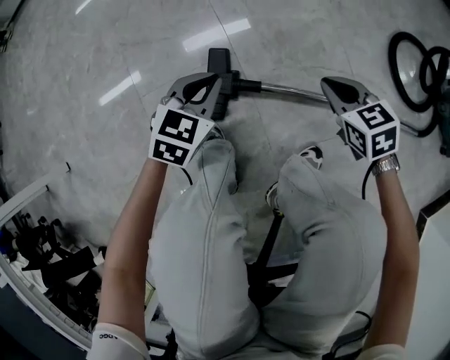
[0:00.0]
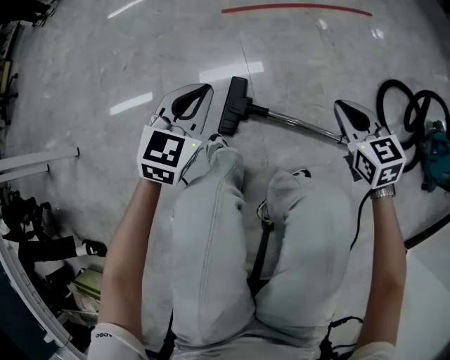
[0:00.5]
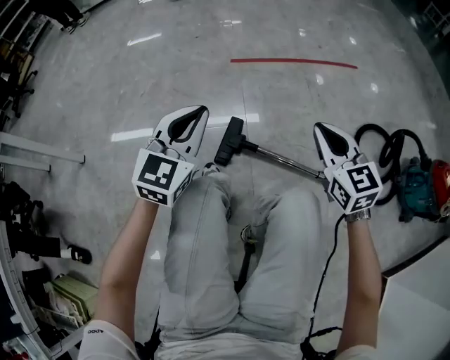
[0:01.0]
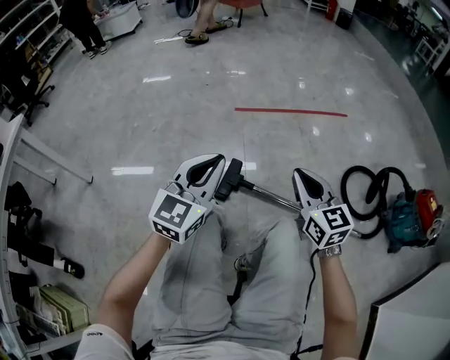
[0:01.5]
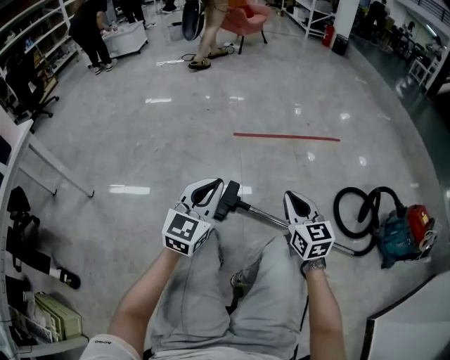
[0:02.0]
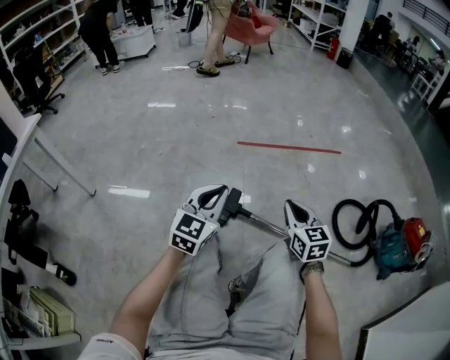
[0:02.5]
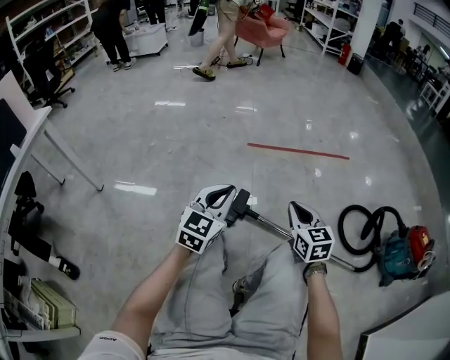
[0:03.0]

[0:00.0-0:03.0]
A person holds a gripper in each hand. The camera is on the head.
0:00.0 to 0:01.5: The right gripper moves upward, approximately 35 cm, and points its fingers about 40 degrees further upward, while the left gripper shifts roughly 40 cm upward and backward, and tilts its fingers some 30 degrees upward.
0:01.5 to 0:03.0: The grippers stay close to where they were, moving slightly.

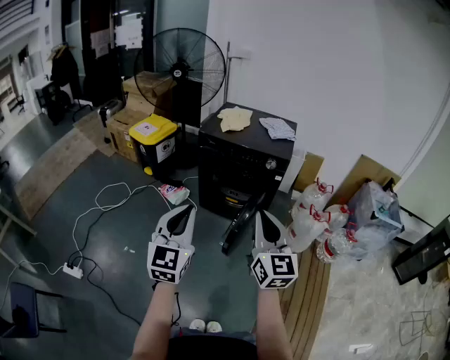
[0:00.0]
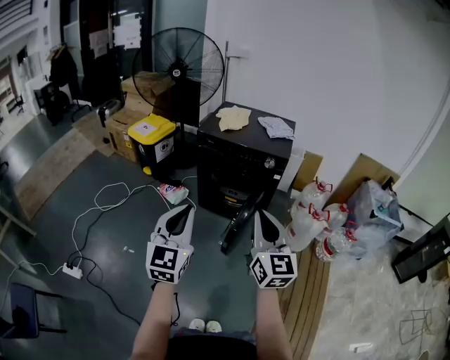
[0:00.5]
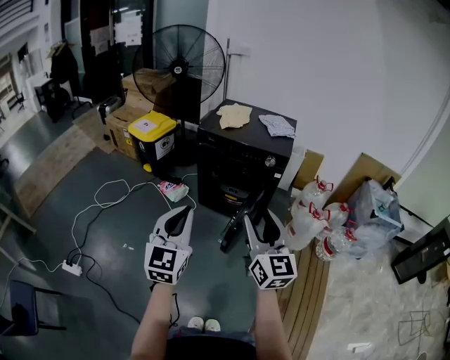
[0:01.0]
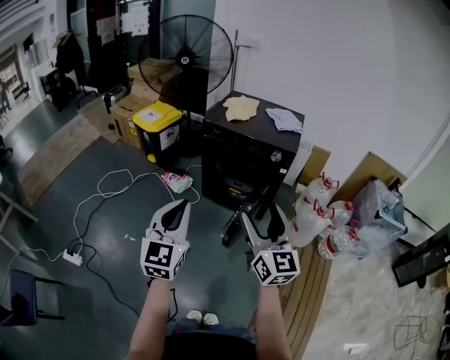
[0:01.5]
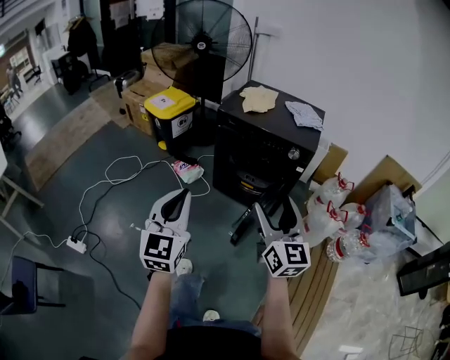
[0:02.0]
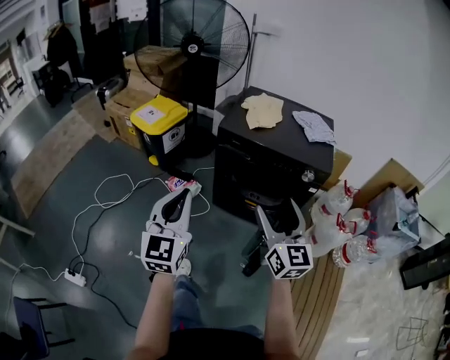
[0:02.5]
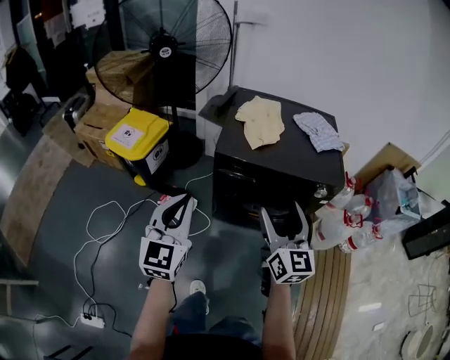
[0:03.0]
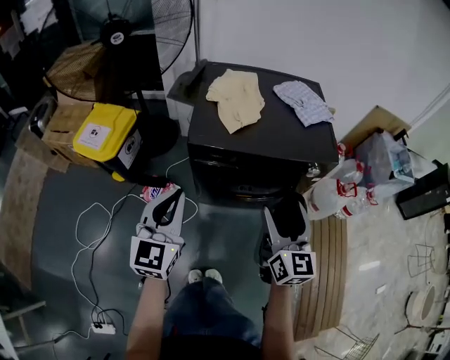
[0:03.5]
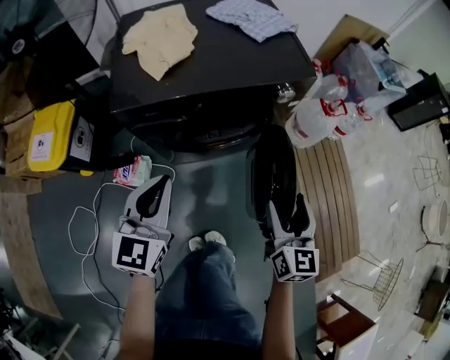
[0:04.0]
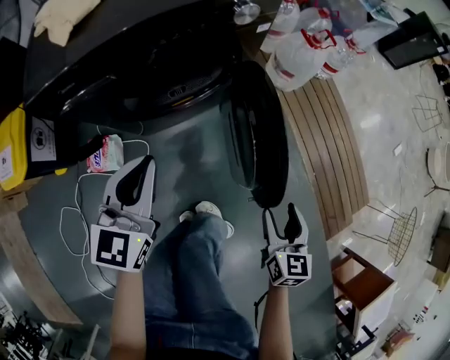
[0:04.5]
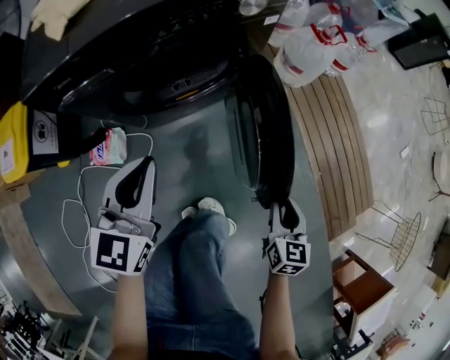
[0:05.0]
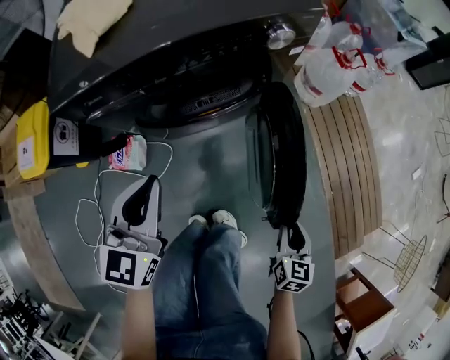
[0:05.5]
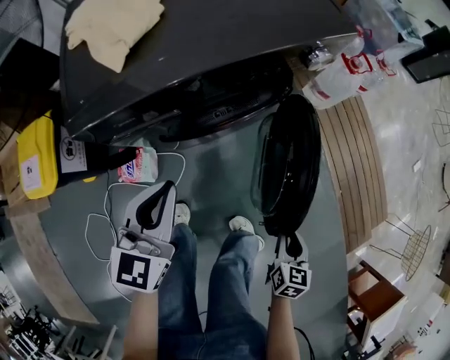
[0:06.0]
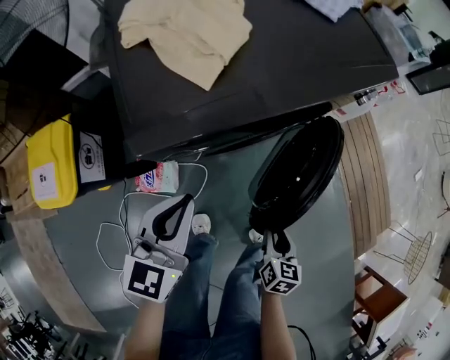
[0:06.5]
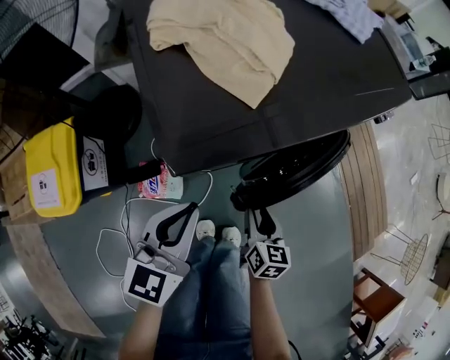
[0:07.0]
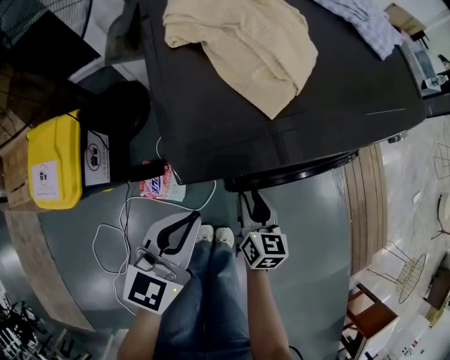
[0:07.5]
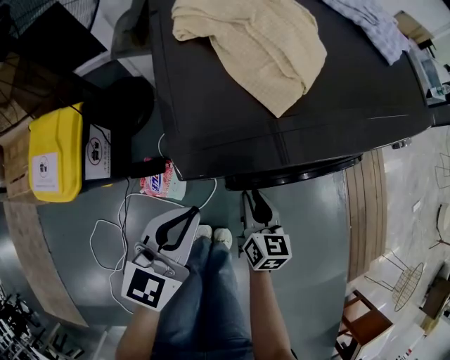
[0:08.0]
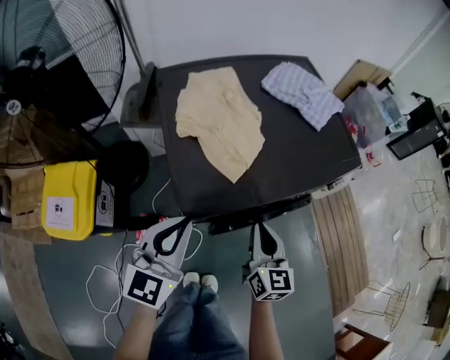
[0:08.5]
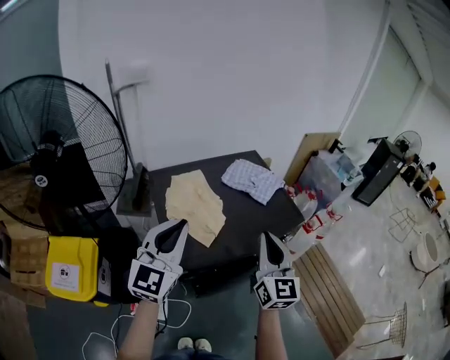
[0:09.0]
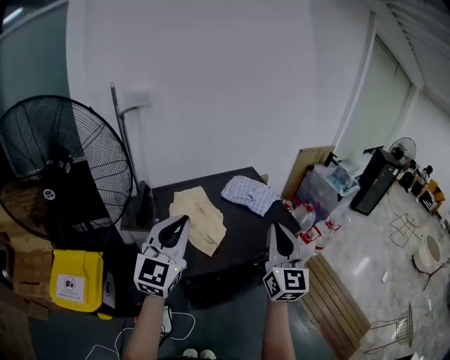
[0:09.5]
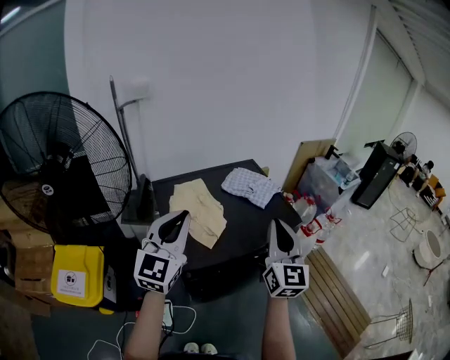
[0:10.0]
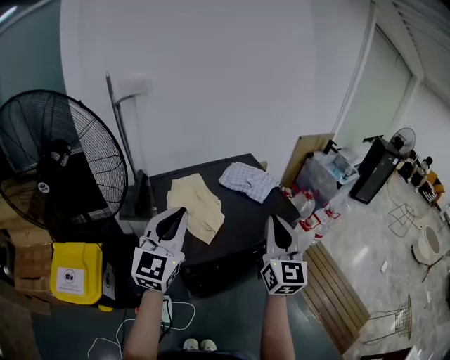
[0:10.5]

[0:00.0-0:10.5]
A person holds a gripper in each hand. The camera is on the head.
0:00.0 to 0:02.0: The left gripper shifts about 5 cm forward, while the right gripper travels forward by about 10 cm, and opens its fingers.
0:02.0 to 0:04.0: The right gripper moves downward, approximately 25 cm, and rotates some 50 degrees. The left gripper moves approximately 50 cm, and rotates some 50 degrees.
0:04.0 to 0:06.5: The left gripper travels to the left, downward and forward by some 15 cm, while the right gripper moves downward and to the left, approximately 30 cm, changes its angle by about 40 degrees, and closes up.
0:06.5 to 0:08.5: The right gripper travels upward, forward and to the left by approximately 30 cm, tips its fingers upward by some 30 degrees, and closes its fingers, while the left gripper is displaced upward, to the left and forward by approximately 15 cm.
0:08.5 to 0:10.5: Both grippers travel together upward, some 30 cm. The left gripper swivels roughly 20 degrees. Meanwhile the right gripper changes its angle by approximately 30 degrees.

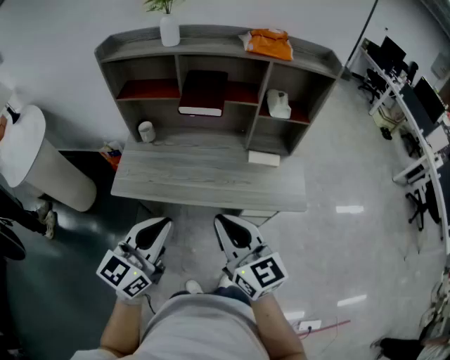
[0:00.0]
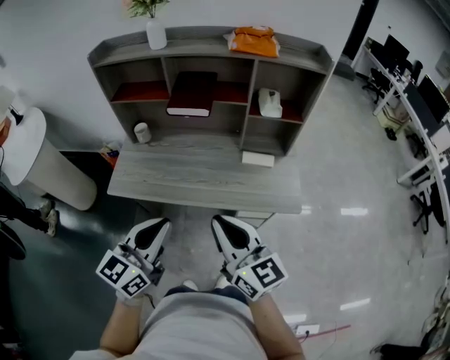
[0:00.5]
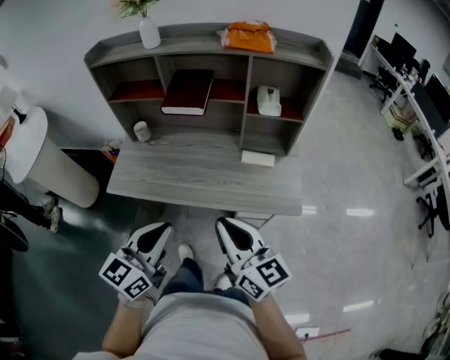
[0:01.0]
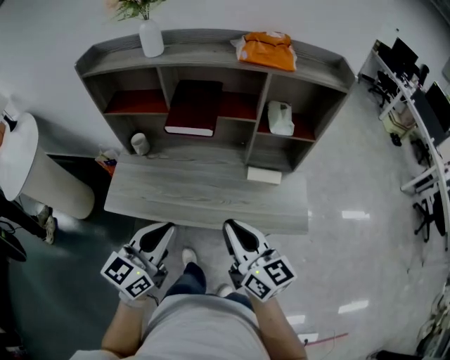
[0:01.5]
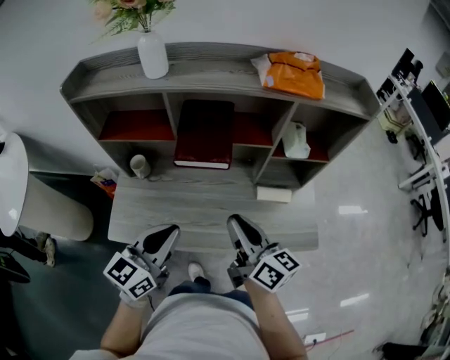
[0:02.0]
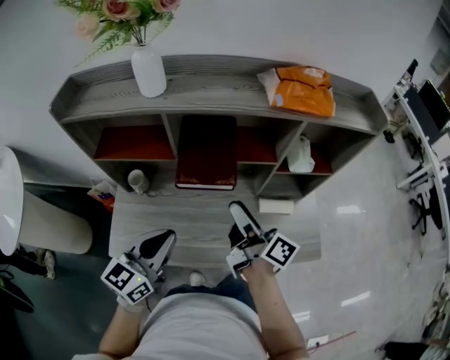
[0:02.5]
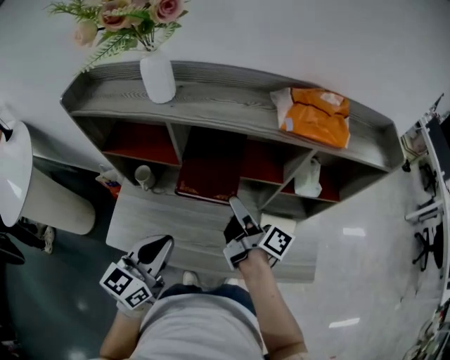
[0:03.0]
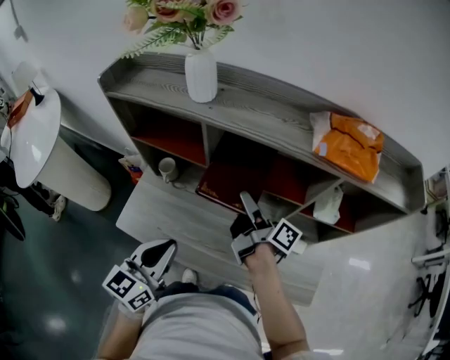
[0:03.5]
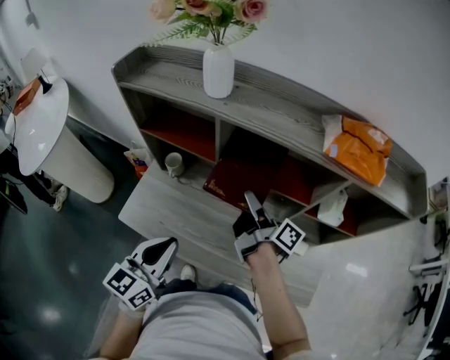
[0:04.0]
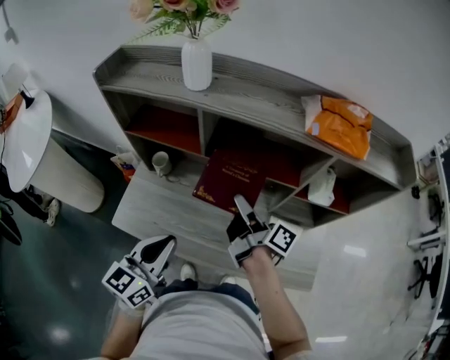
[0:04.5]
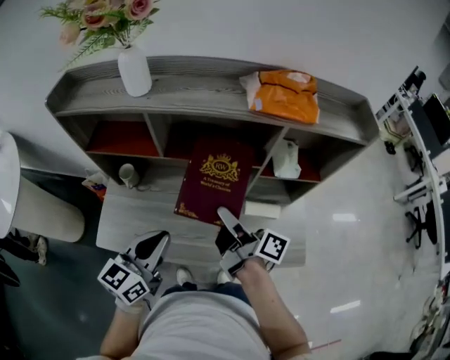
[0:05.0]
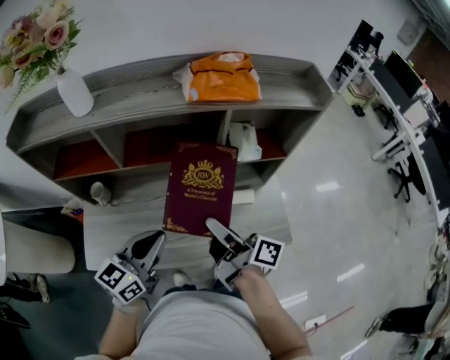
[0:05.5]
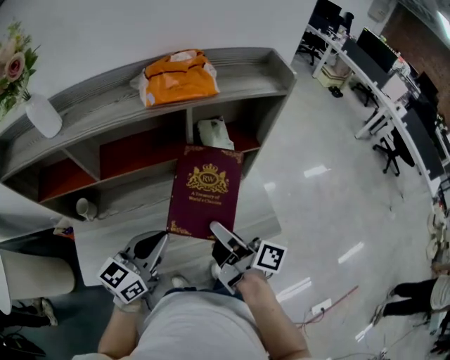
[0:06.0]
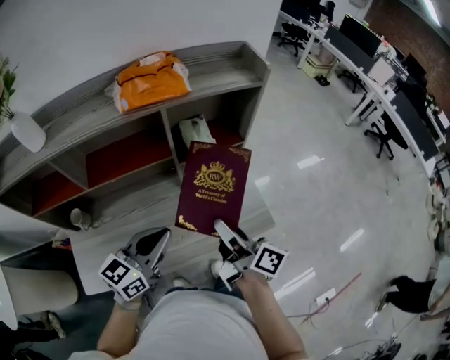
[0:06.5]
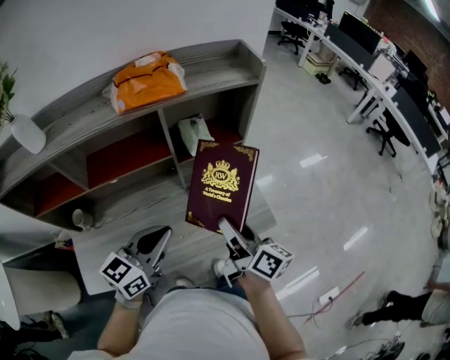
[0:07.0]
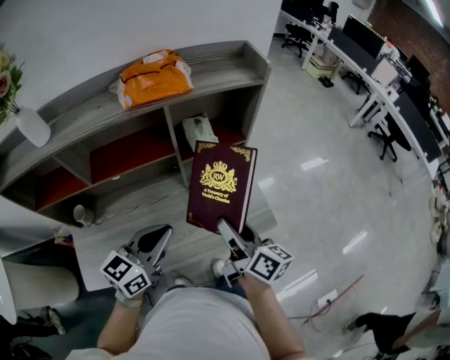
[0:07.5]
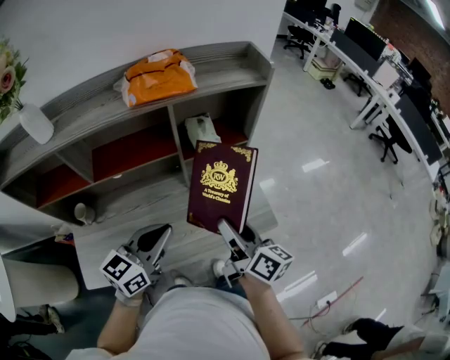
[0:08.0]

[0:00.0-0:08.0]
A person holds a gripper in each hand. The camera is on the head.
0:00.0 to 0:02.0: The grippers both shift forward by roughly 25 cm. The right gripper turns by roughly 30 degrees.
0:02.0 to 0:04.0: The right gripper moves forward, some 20 cm, rotates around the line of its fingers by about 40 degrees, clockwise from behind, and opens up; the left gripper turns by approximately 20 degrees.
0:04.0 to 0:06.0: The left gripper changes place by about 20 cm, and swivels about 40 degrees. The right gripper shifts by about 25 cm, and turns by about 30 degrees.
0:06.0 to 0:08.0: The right gripper shifts some 5 cm to the right, and changes its angle by about 30 degrees.

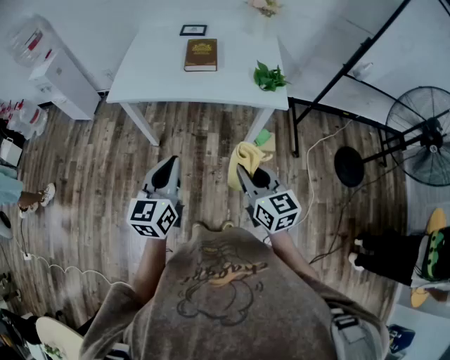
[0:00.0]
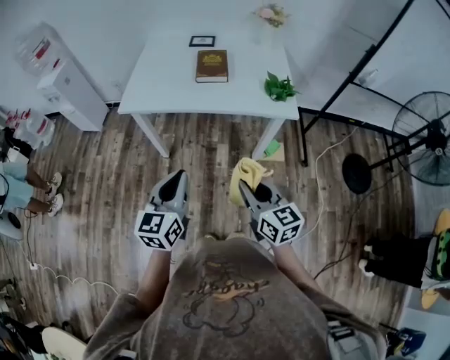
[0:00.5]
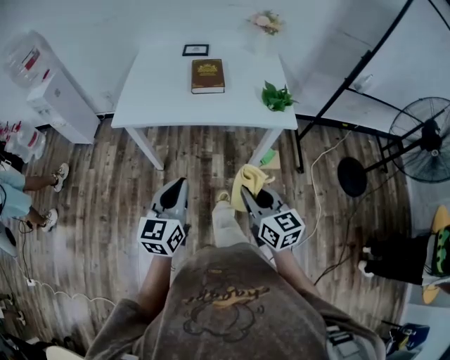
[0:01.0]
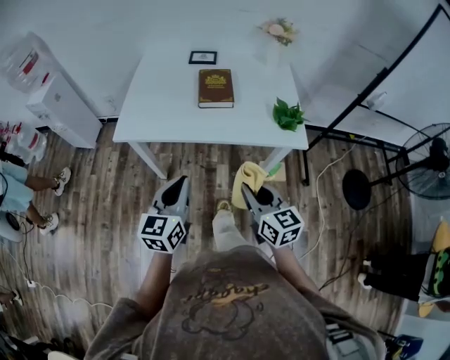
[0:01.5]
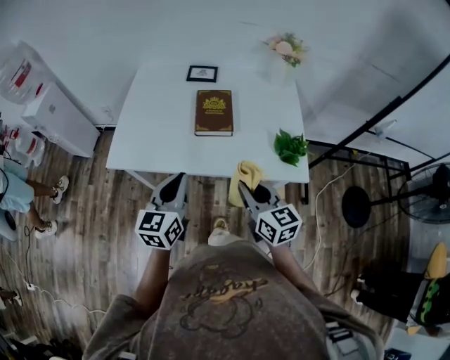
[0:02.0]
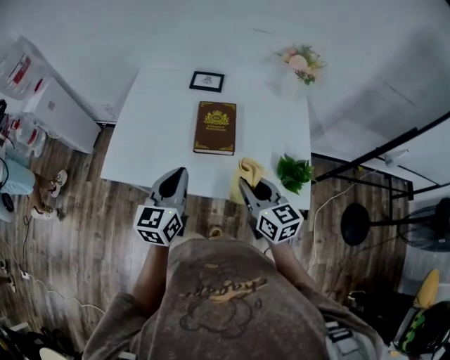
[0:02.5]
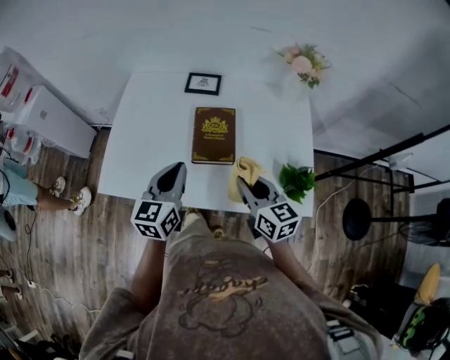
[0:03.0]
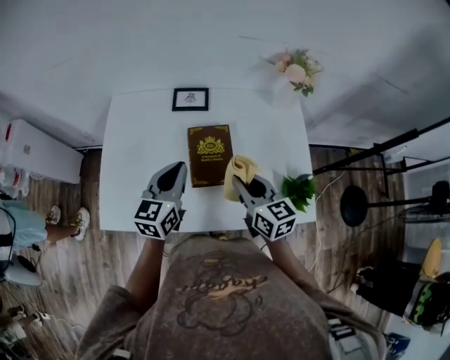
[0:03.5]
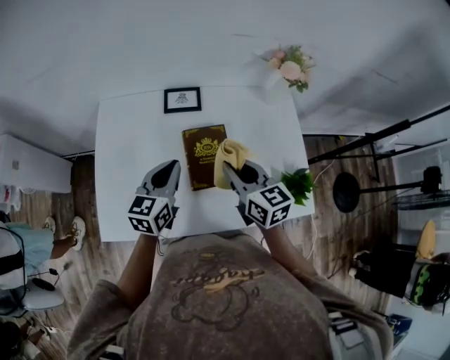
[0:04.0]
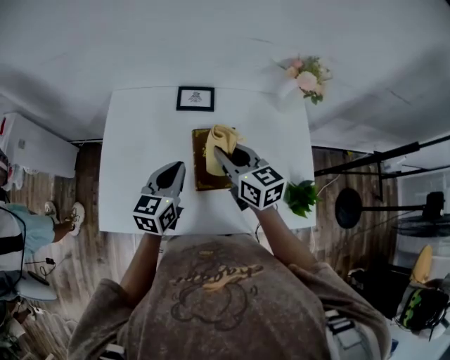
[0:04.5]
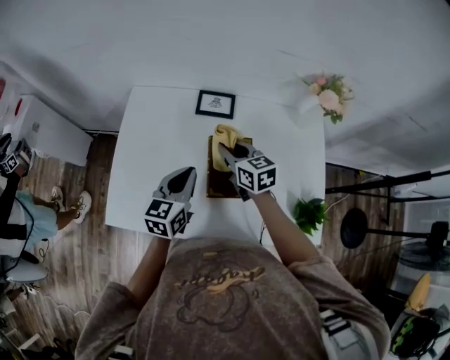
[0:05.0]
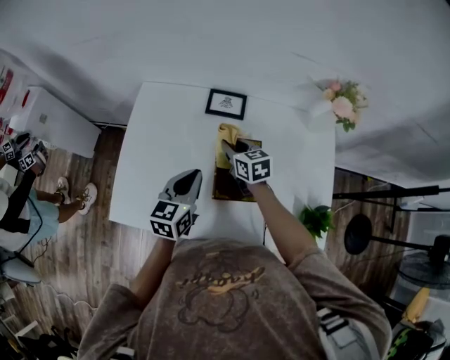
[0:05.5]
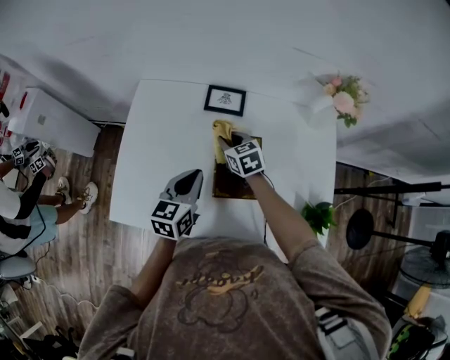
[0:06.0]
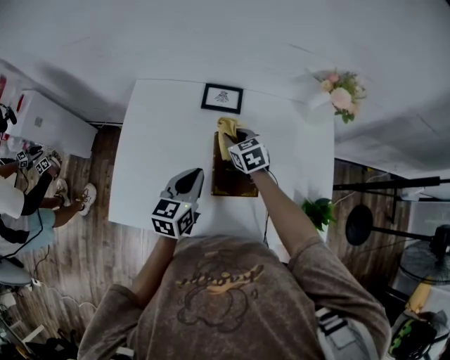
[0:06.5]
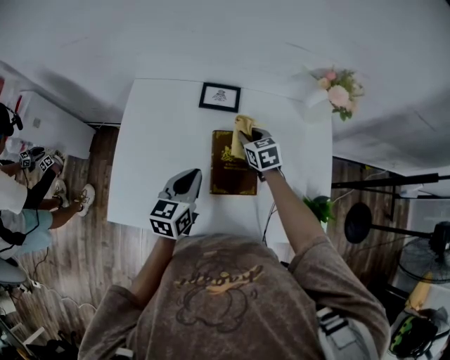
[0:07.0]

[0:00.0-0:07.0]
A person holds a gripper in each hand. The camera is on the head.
0:00.0 to 0:02.0: The two grippers go approximately 30 cm forward.
0:02.0 to 0:03.5: Both grippers move forward, approximately 30 cm.
0:03.5 to 0:05.0: The left gripper shifts by about 5 cm, while the right gripper travels forward and to the left by approximately 20 cm.
0:05.0 to 0:07.0: The right gripper goes roughly 15 cm downward, to the right and forward, and changes its angle by roughly 20 degrees.
